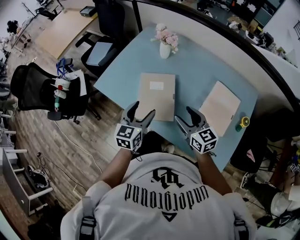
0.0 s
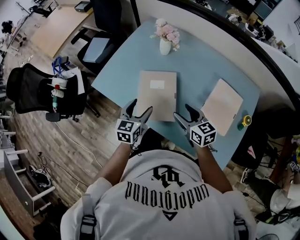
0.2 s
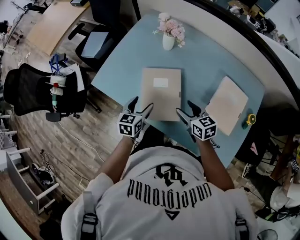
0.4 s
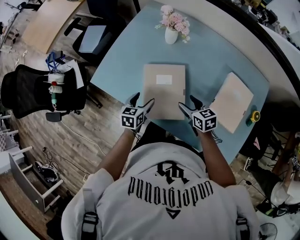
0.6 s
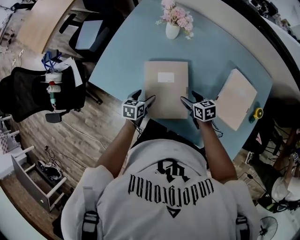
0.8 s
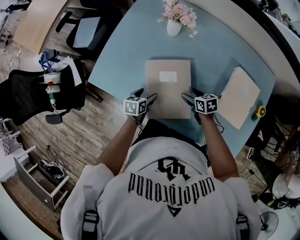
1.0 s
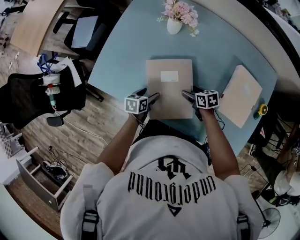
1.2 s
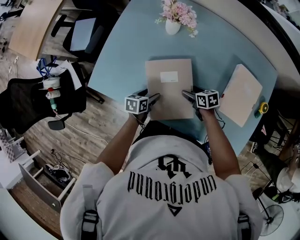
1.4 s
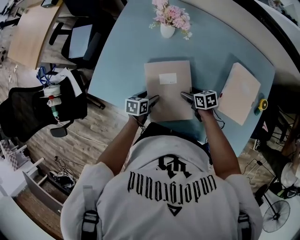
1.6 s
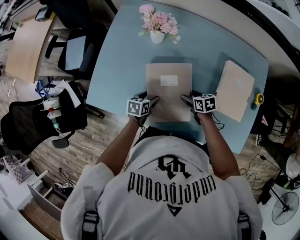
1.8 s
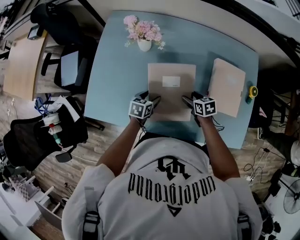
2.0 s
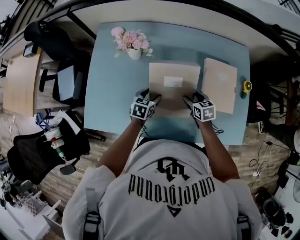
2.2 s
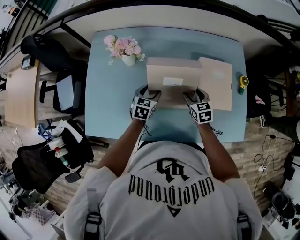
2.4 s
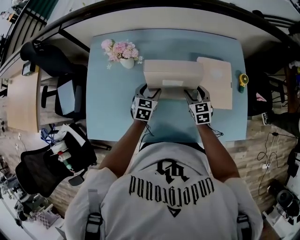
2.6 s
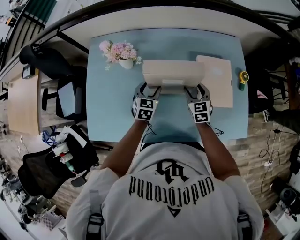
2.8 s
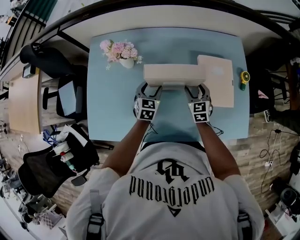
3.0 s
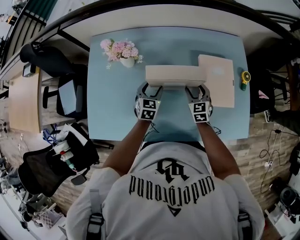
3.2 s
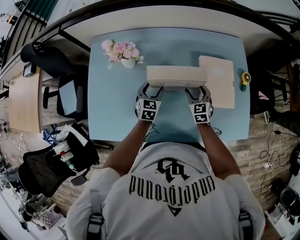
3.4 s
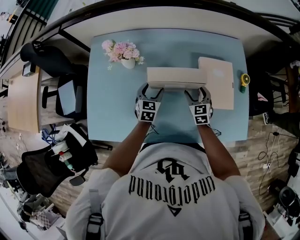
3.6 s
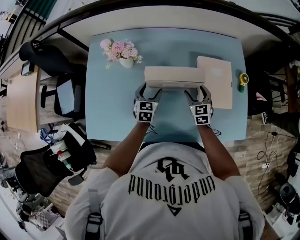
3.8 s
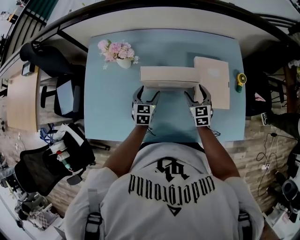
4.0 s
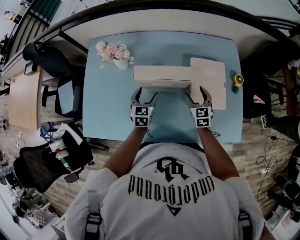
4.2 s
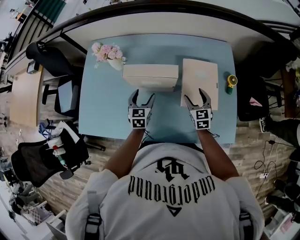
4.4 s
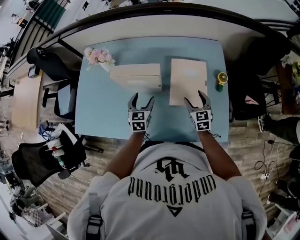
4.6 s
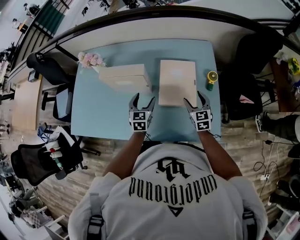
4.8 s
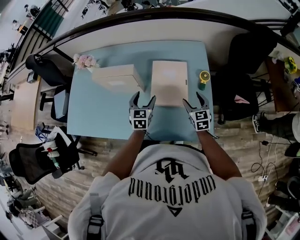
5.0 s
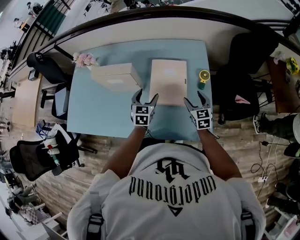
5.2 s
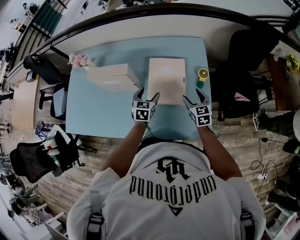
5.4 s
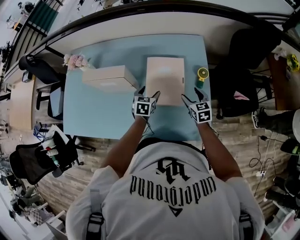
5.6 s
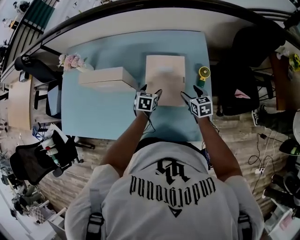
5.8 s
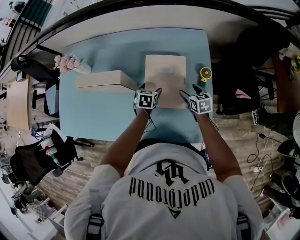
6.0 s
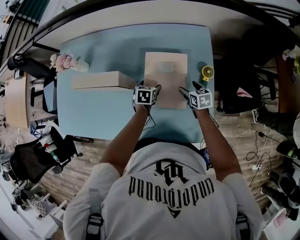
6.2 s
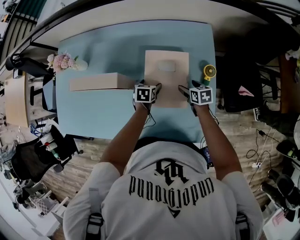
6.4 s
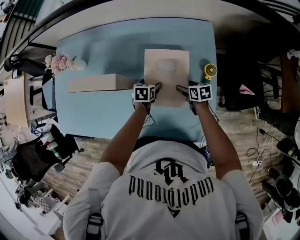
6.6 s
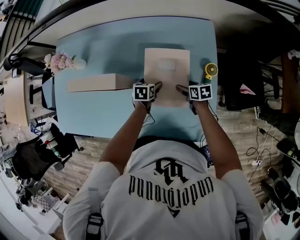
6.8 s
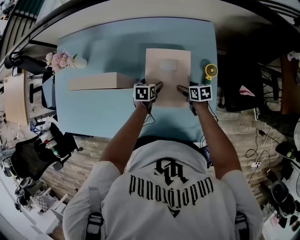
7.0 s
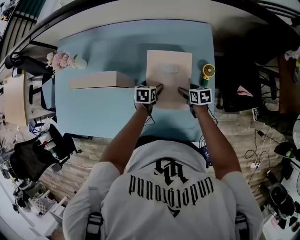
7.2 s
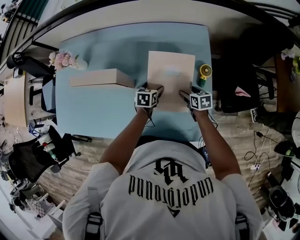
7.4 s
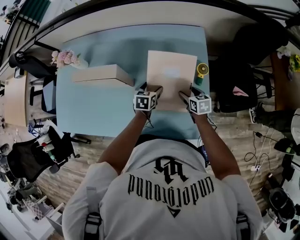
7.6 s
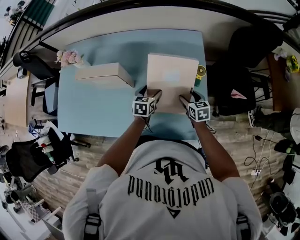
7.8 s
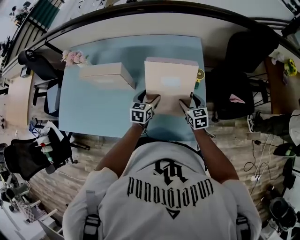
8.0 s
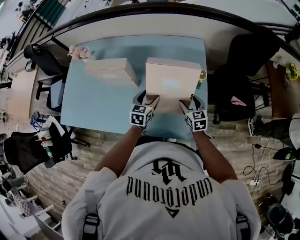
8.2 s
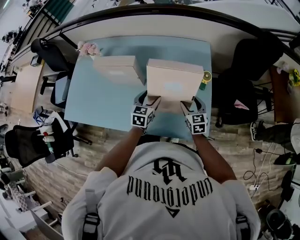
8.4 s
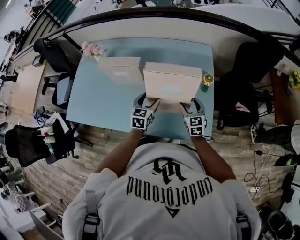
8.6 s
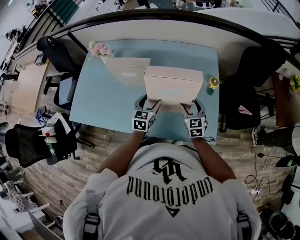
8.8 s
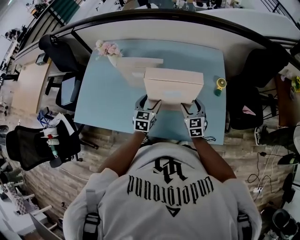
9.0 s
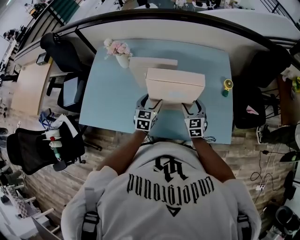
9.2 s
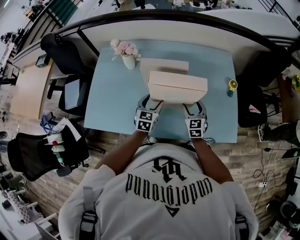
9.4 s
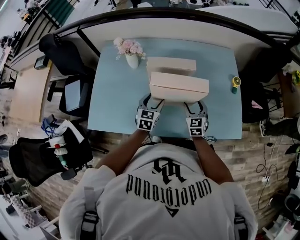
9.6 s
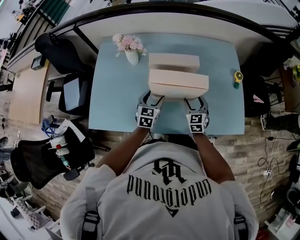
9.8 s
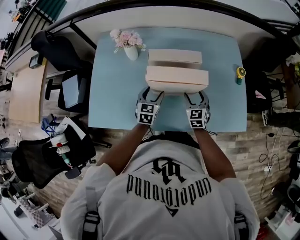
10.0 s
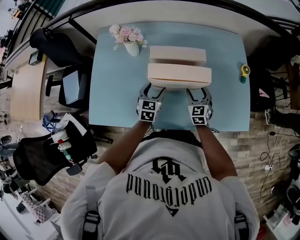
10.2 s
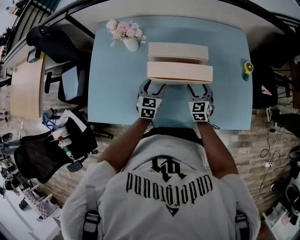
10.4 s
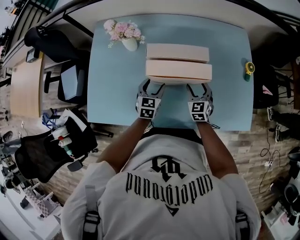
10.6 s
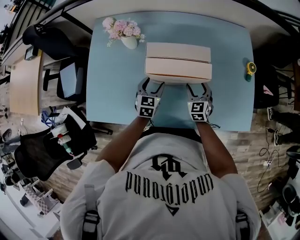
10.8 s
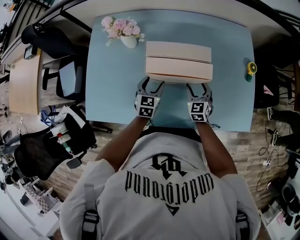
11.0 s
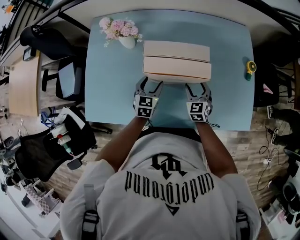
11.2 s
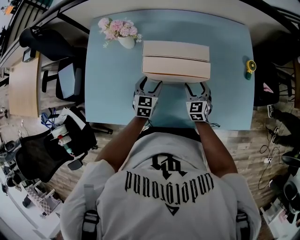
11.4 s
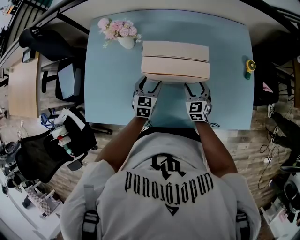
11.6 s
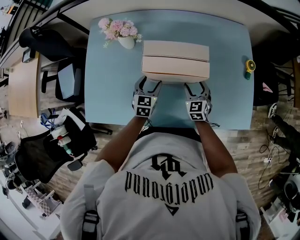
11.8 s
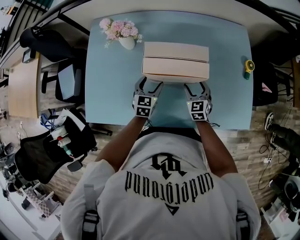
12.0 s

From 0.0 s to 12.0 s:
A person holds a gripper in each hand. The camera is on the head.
From 0.0 s to 1.6 s: The grippers both shift downward and forward by roughly 30 cm. The left gripper changes its angle by approximately 50 degrees. The right gripper angles its fingers downward, by some 30 degrees.
From 1.6 s to 3.0 s: The left gripper ends up approximately 25 cm from where it was, and twists some 50 degrees clockwise, seen from behind; the right gripper changes place by about 20 cm, and swivels some 60 degrees.
From 3.0 s to 4.4 s: The left gripper heads to the right, covering some 5 cm, while the right gripper travels to the right by some 10 cm.
From 4.4 s to 6.0 s: The two grippers go approximately 25 cm to the right. The right gripper turns by some 30 degrees. The left gripper rotates approximately 30 degrees.
From 6.0 s to 7.6 s: The right gripper reaches about 10 cm downward, then returns.
From 7.6 s to 9.0 s: The grippers both shift to the left, upward and backward by roughly 25 cm. The right gripper rotates some 40 degrees. Meanwhile the left gripper changes its angle by about 20 degrees.
From 9.0 s to 10.4 s: The two grippers go approximately 20 cm to the left.
From 10.4 s to 12.0 s: There are only small adjustments of the grippers.

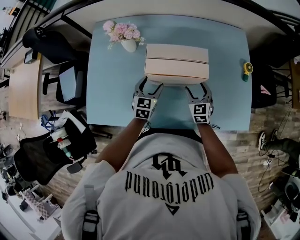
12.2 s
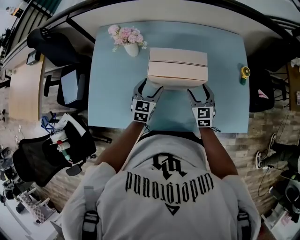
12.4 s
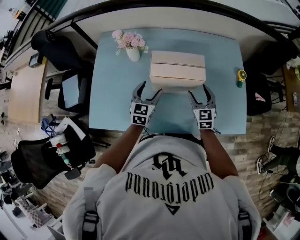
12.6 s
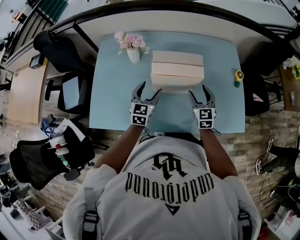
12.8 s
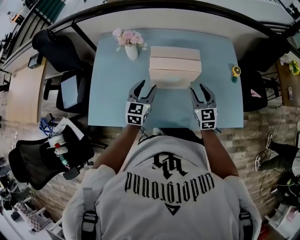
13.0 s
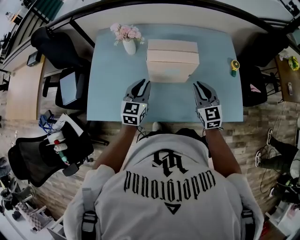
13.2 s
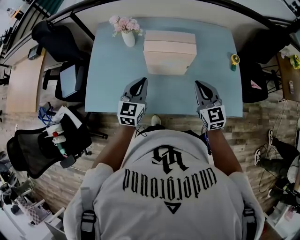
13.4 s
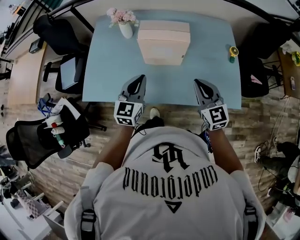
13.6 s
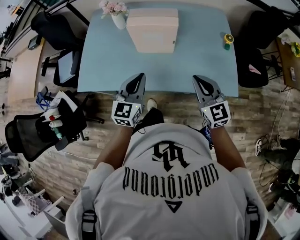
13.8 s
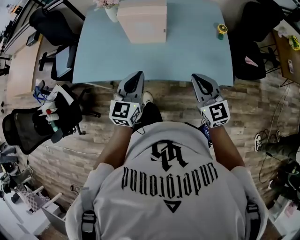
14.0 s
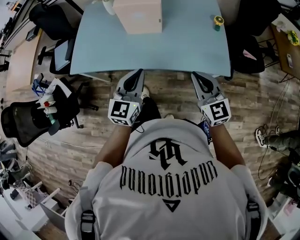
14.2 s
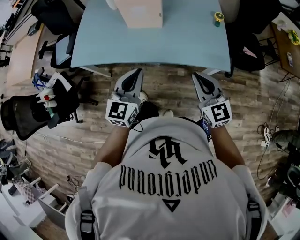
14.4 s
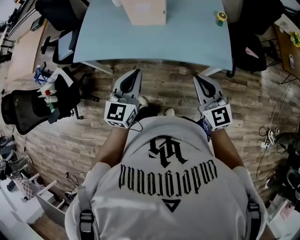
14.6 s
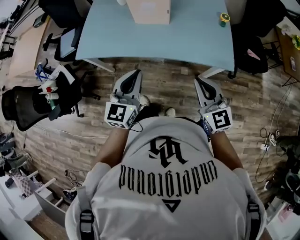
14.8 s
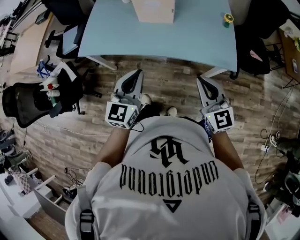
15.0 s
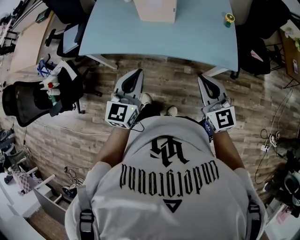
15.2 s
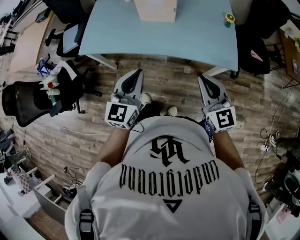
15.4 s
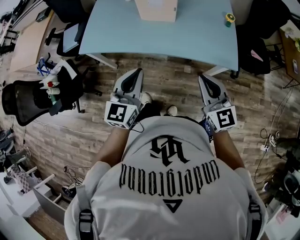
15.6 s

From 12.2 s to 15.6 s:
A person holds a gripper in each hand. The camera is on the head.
From 12.2 s to 13.8 s: The grippers both shift backward and upward by about 30 cm. The left gripper closes up. The right gripper changes its angle by roughly 20 degrees, and closes up.
From 13.8 s to 15.6 s: Both grippers move backward, roughly 20 cm.

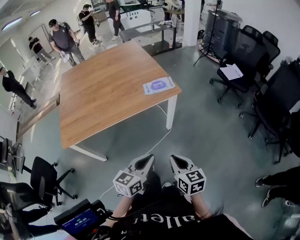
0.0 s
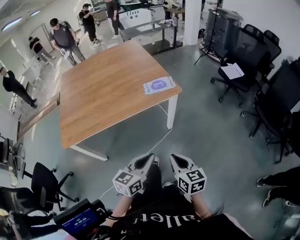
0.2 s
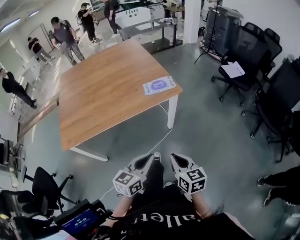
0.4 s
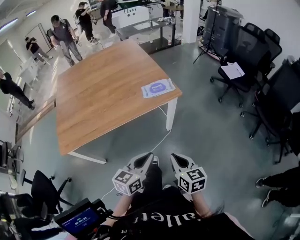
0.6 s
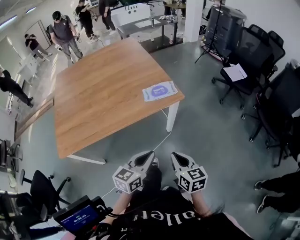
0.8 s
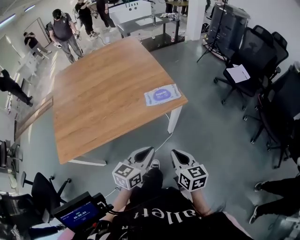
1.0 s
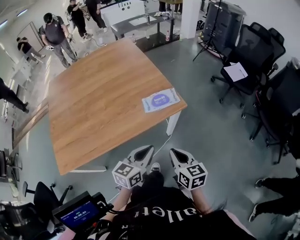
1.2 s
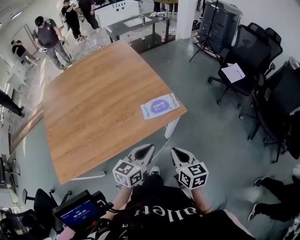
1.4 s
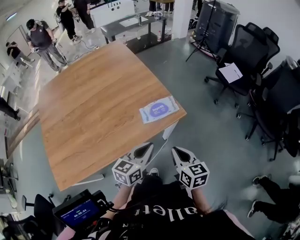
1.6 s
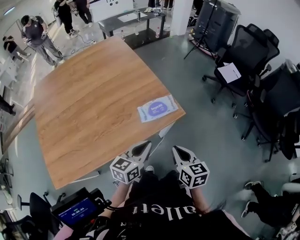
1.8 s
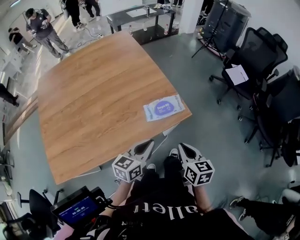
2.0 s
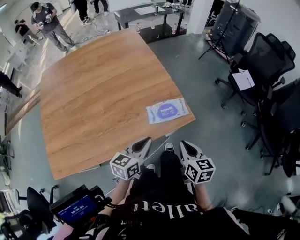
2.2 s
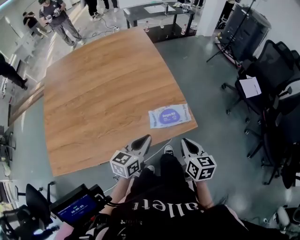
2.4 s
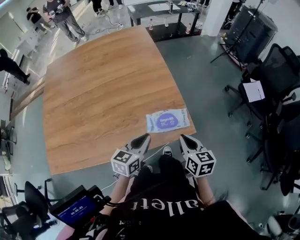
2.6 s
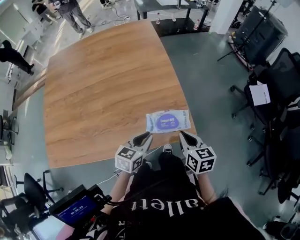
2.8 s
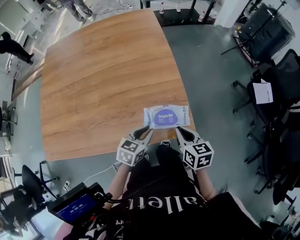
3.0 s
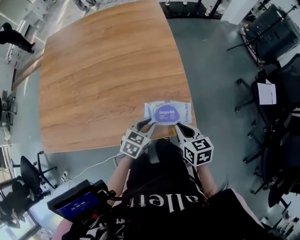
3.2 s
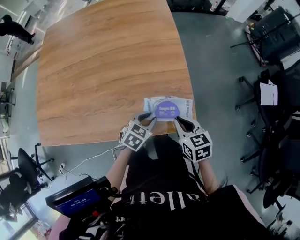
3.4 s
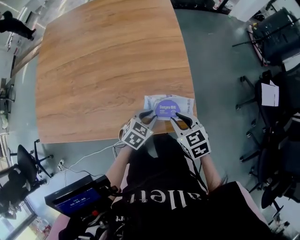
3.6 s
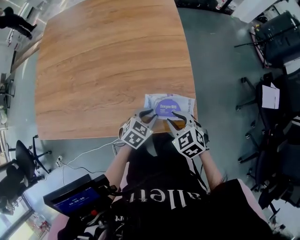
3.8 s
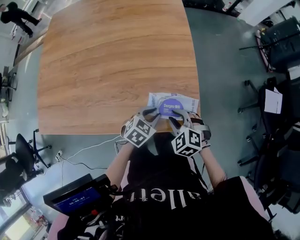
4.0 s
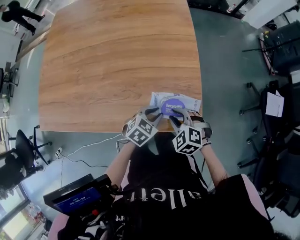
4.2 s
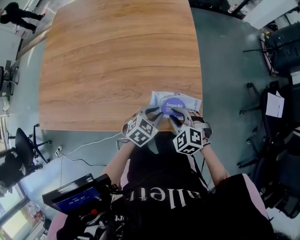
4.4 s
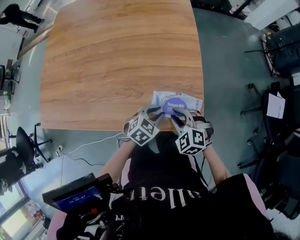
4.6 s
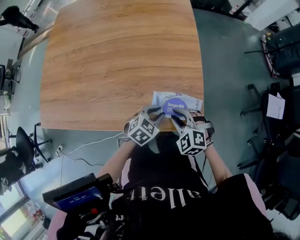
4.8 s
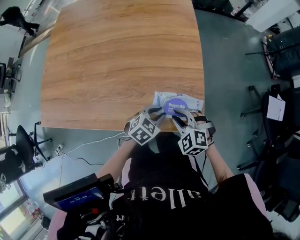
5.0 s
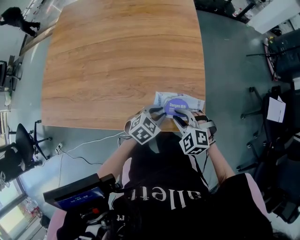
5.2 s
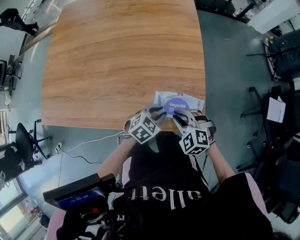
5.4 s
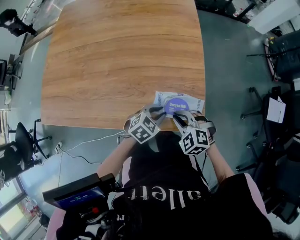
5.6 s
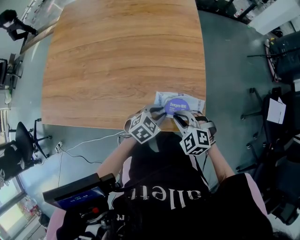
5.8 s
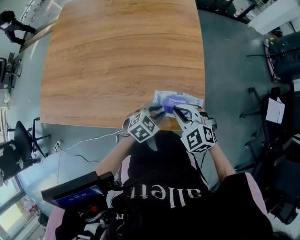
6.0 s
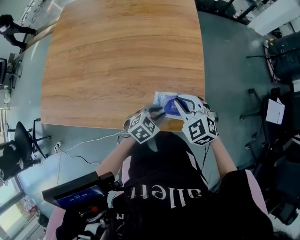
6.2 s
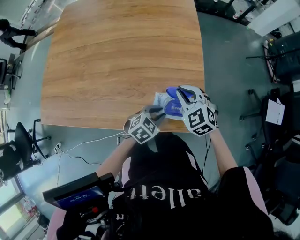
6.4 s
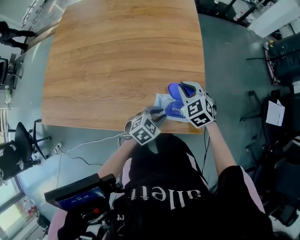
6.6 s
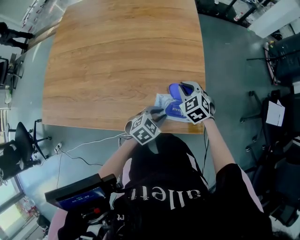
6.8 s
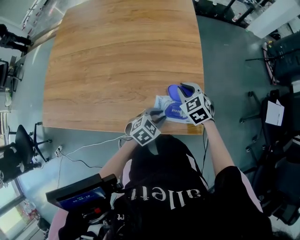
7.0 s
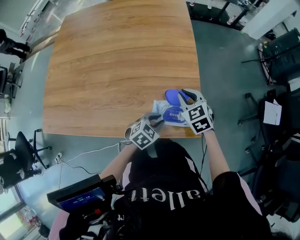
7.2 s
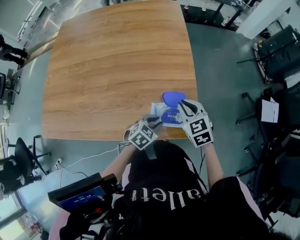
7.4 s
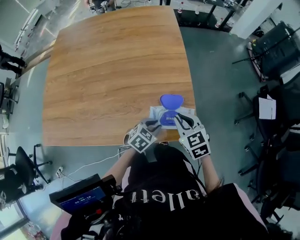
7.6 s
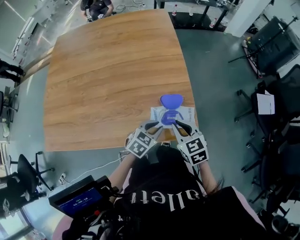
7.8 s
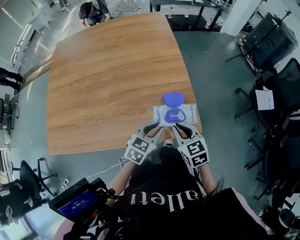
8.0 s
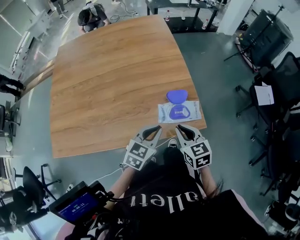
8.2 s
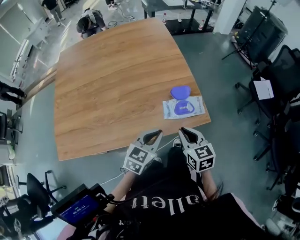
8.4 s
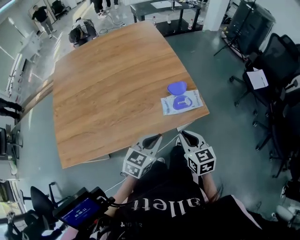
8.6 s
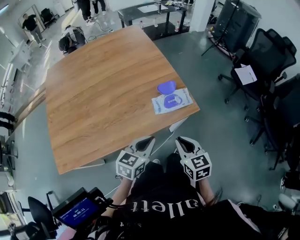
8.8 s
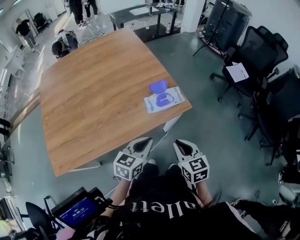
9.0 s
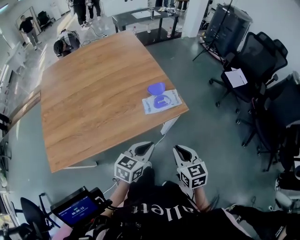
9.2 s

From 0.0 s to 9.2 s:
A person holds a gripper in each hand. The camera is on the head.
From 0.0 s to 1.6 s: The two grippers go approximately 30 cm forward.
From 1.6 s to 3.0 s: The right gripper is displaced forward by some 25 cm, and swivels roughly 20 degrees. The left gripper shifts about 20 cm forward and downward, and turns by roughly 30 degrees.
From 3.0 s to 4.6 s: The left gripper shifts about 5 cm downward; the right gripper moves downward and to the left, some 10 cm, twists roughly 70 degrees counterclockwise, seen from behind, and opens.
From 4.6 s to 6.2 s: The right gripper travels forward and upward by about 10 cm.
From 6.2 s to 7.6 s: The right gripper reaches some 10 cm forward, then returns, and changes its angle by approximately 30 degrees.
From 7.6 s to 9.2 s: The left gripper moves backward and upward, roughly 25 cm, and rotates about 30 degrees; the right gripper heads backward, covering some 30 cm, and turns by approximately 30 degrees.
